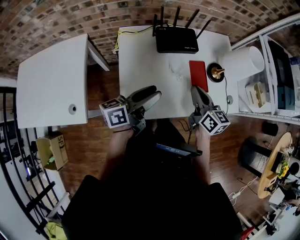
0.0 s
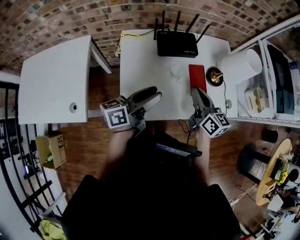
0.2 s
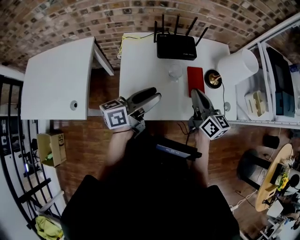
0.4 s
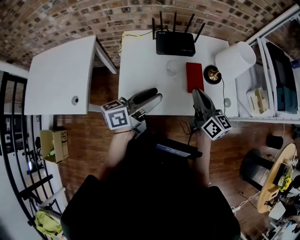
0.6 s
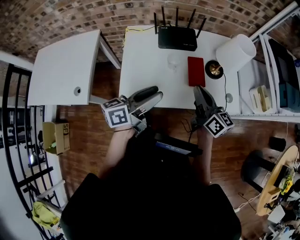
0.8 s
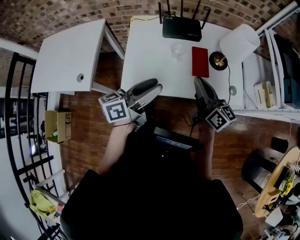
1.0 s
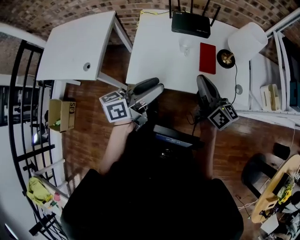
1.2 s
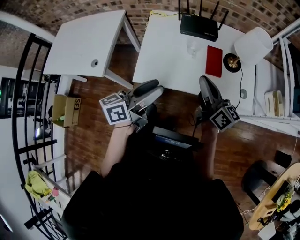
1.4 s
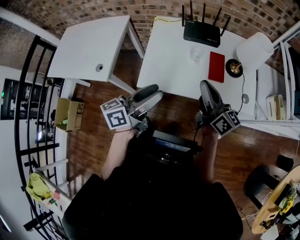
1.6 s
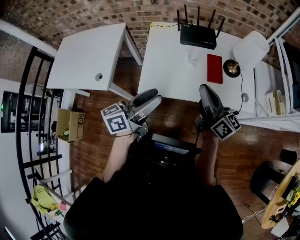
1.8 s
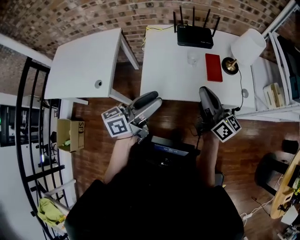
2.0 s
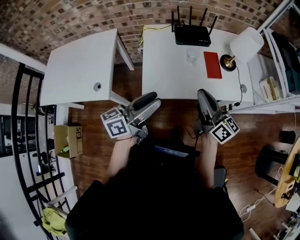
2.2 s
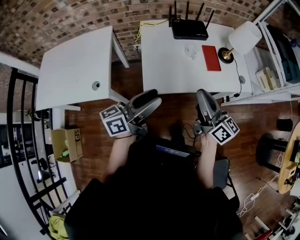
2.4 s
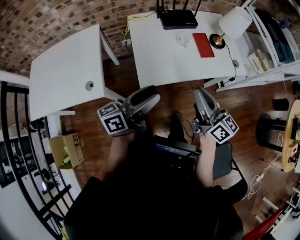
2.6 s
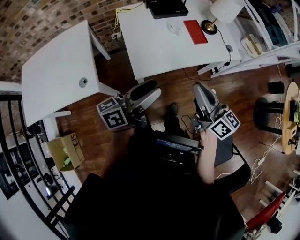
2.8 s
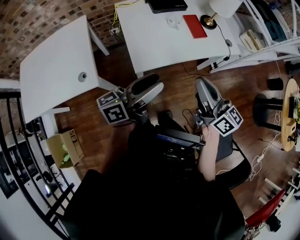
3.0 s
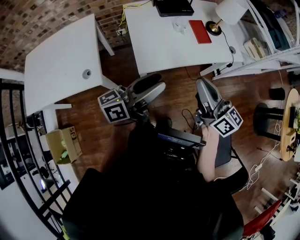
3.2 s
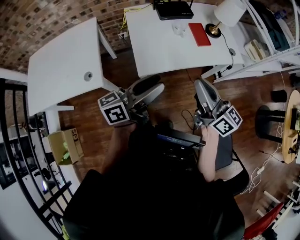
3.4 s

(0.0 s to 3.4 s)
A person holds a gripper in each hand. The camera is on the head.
0.0 s - 1.6 s: The left gripper heads backward, covering about 20 cm. The right gripper is displaced backward and upward by some 20 cm, and rotates roughly 30 degrees.
1.6 s - 3.4 s: The right gripper goes roughly 25 cm backward and to the left. Meanwhile the left gripper goes roughly 20 cm to the left and backward, and turns by some 30 degrees.

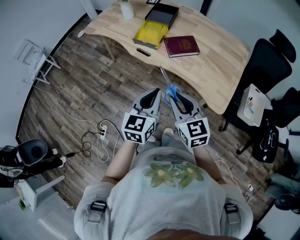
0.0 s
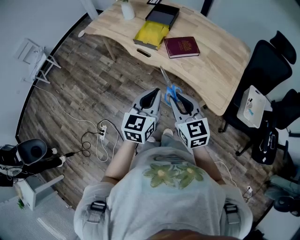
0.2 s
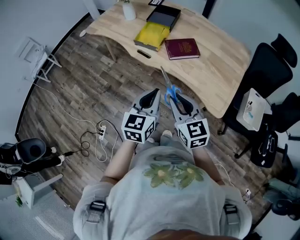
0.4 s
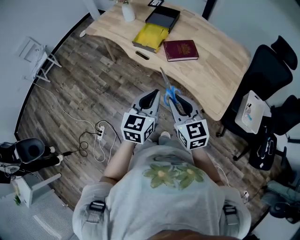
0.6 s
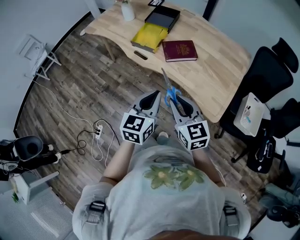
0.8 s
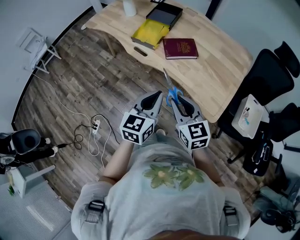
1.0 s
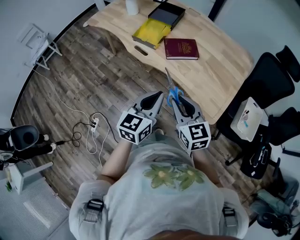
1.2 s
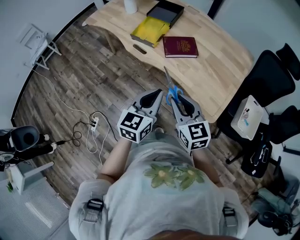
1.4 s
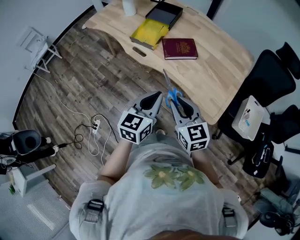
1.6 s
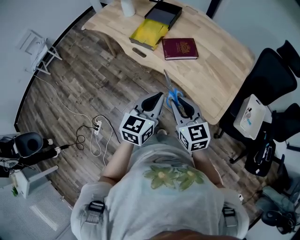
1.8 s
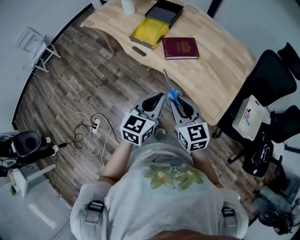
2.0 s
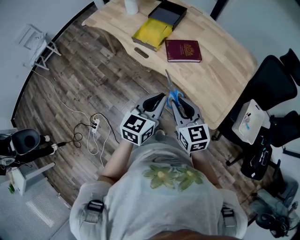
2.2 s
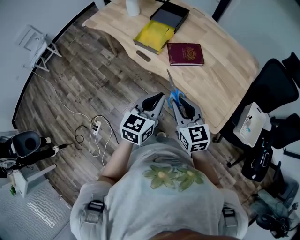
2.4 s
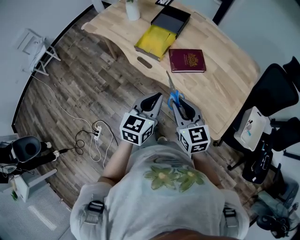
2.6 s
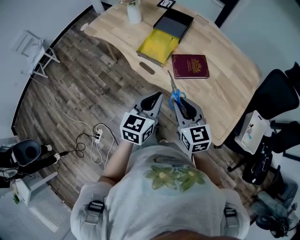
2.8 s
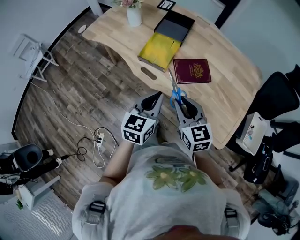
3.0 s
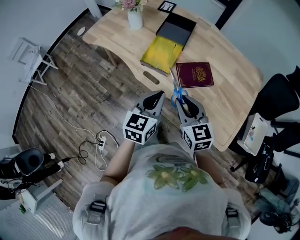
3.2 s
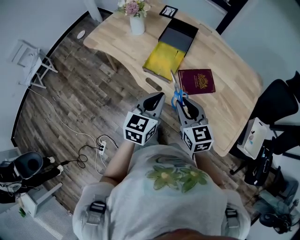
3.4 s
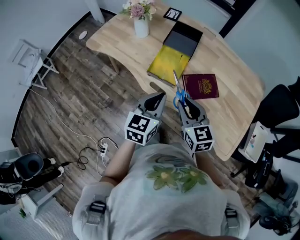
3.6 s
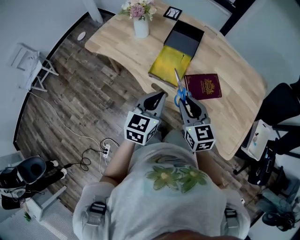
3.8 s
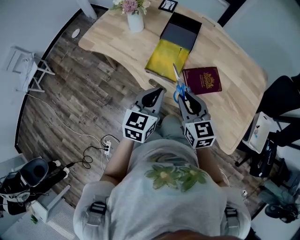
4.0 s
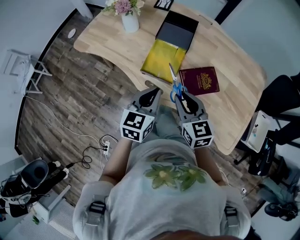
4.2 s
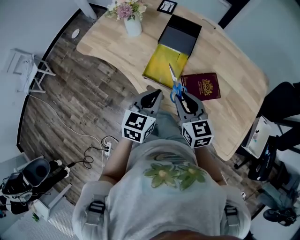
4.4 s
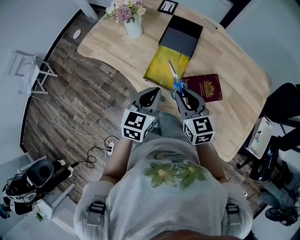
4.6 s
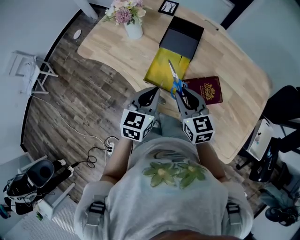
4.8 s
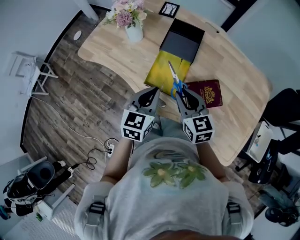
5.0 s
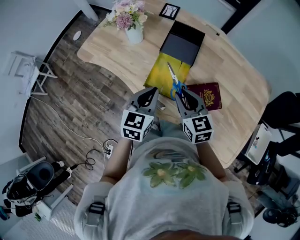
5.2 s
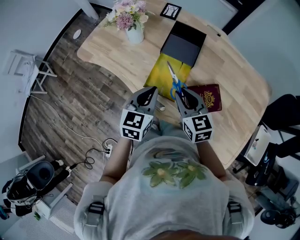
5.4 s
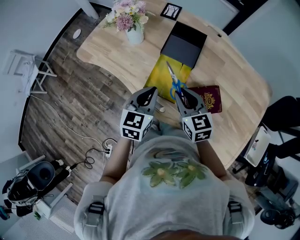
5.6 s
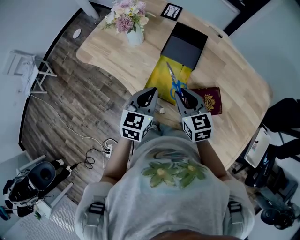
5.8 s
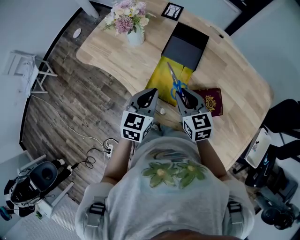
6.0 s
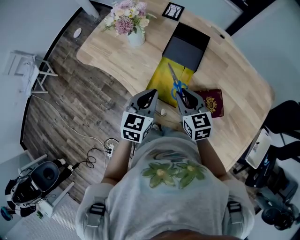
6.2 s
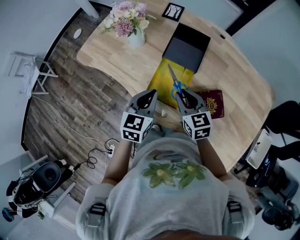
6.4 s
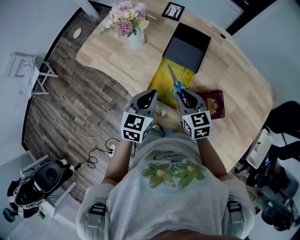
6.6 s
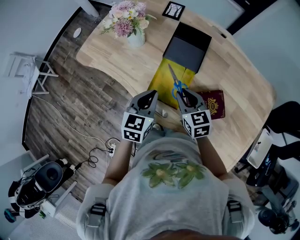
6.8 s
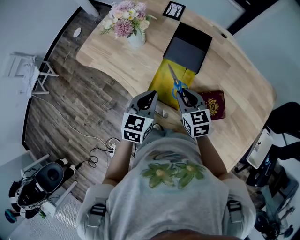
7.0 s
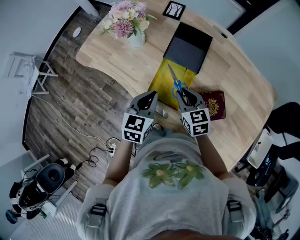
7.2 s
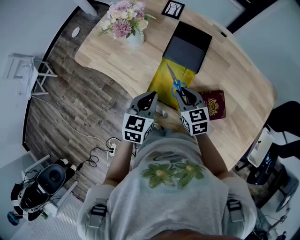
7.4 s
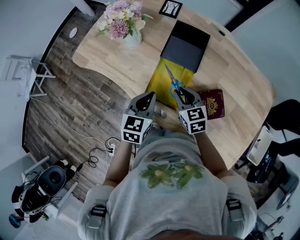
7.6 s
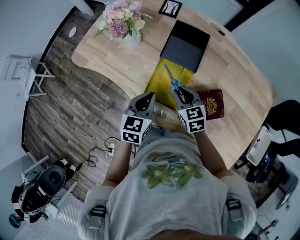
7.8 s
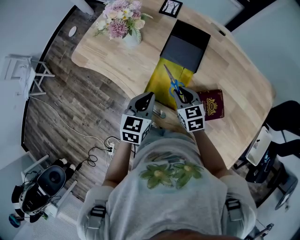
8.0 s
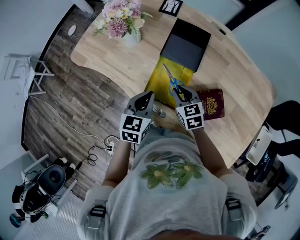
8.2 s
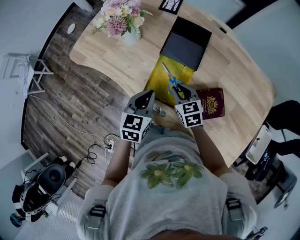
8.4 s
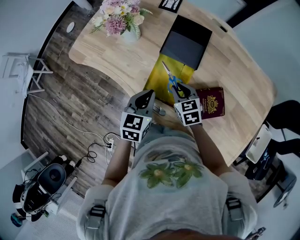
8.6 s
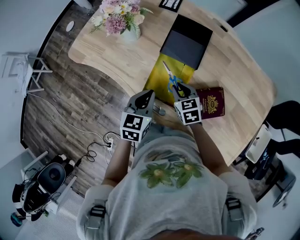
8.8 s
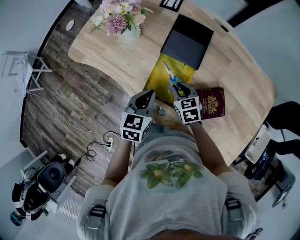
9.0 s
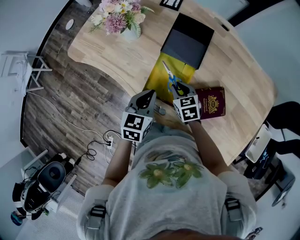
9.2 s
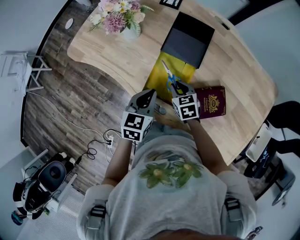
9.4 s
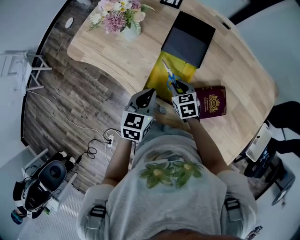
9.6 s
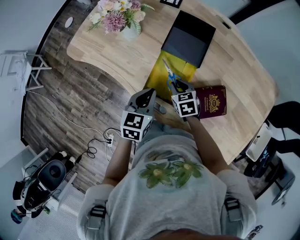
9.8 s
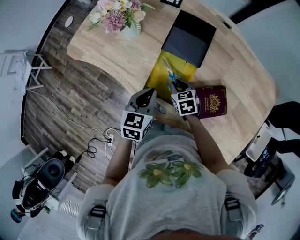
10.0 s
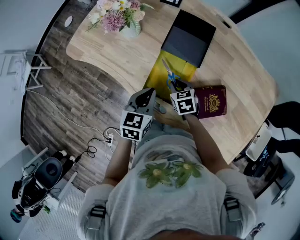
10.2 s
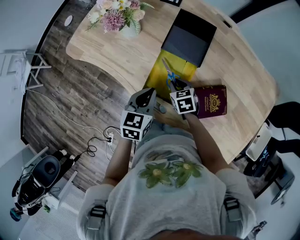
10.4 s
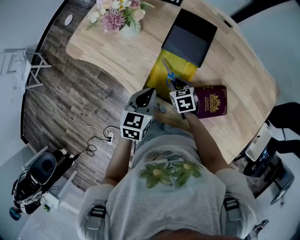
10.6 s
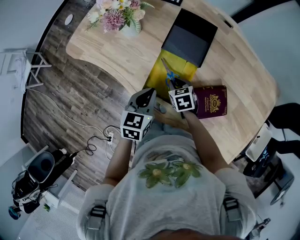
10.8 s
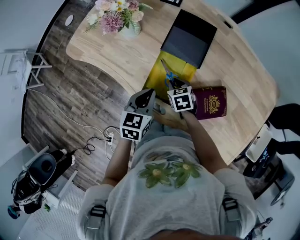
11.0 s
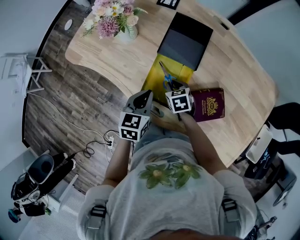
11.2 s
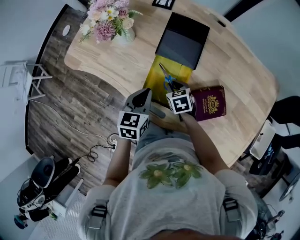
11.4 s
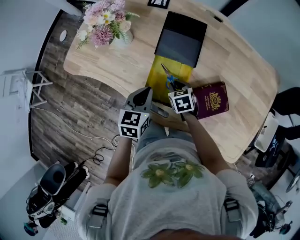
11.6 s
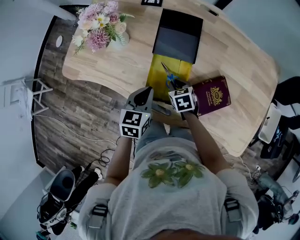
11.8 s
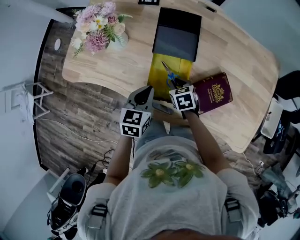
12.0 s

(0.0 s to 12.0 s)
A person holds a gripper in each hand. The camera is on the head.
0.0 s - 1.6 s: Both grippers travel together to the right, some 5 cm.
1.6 s - 3.0 s: The grippers both shift forward and to the left by some 20 cm.
3.0 s - 4.4 s: The right gripper moves forward, some 15 cm. The left gripper is displaced forward and to the left by some 15 cm.
4.4 s - 6.0 s: The two grippers go about 10 cm forward.
6.0 s - 7.6 s: The right gripper shifts roughly 5 cm downward.
7.6 s - 9.0 s: The right gripper travels downward by roughly 5 cm.
9.0 s - 10.4 s: The grippers move only a little.
10.4 s - 12.0 s: There are only small adjustments of the grippers.

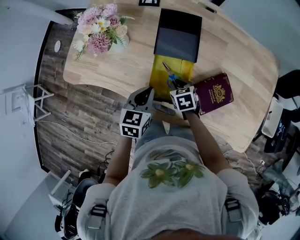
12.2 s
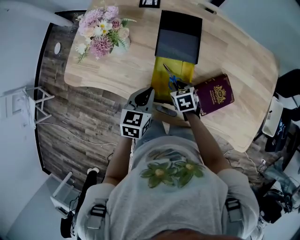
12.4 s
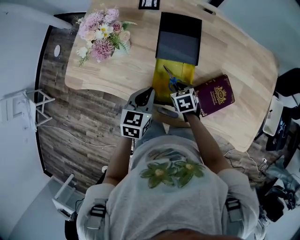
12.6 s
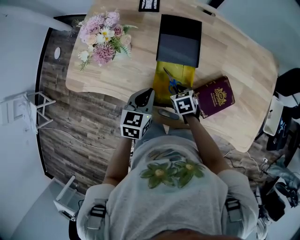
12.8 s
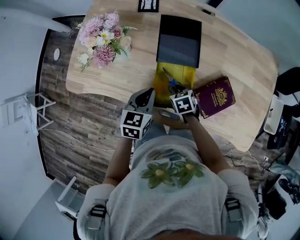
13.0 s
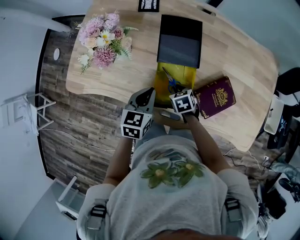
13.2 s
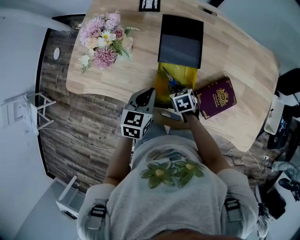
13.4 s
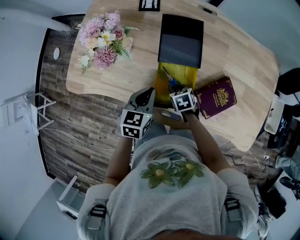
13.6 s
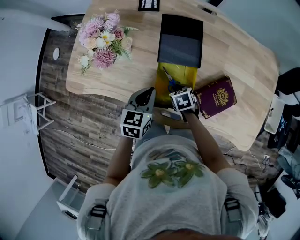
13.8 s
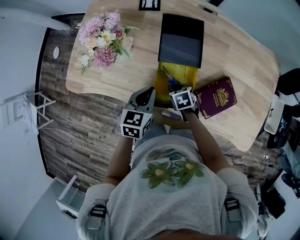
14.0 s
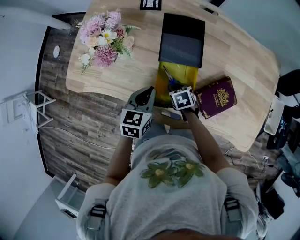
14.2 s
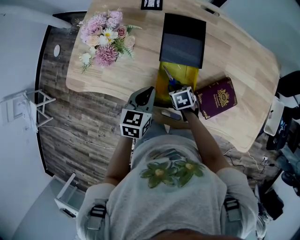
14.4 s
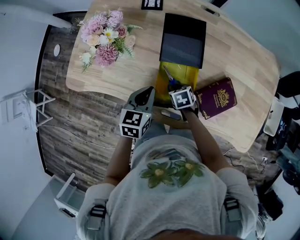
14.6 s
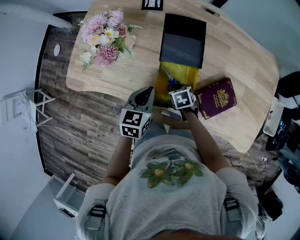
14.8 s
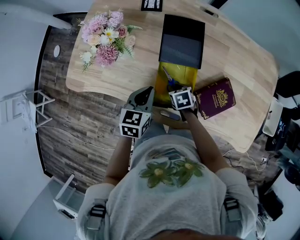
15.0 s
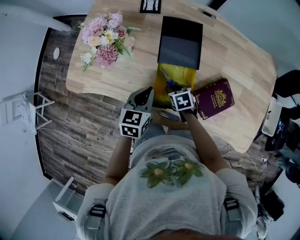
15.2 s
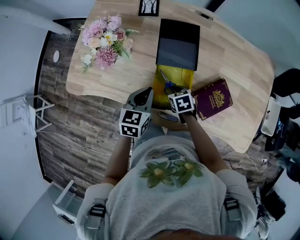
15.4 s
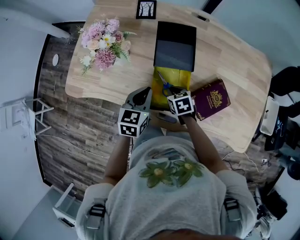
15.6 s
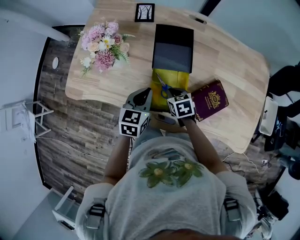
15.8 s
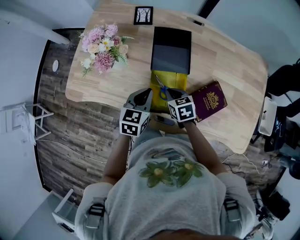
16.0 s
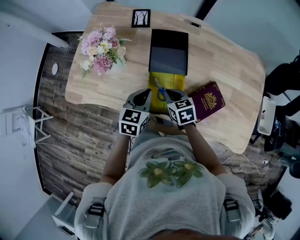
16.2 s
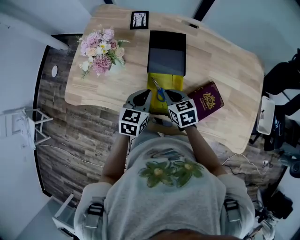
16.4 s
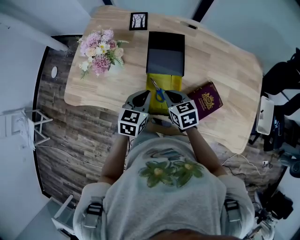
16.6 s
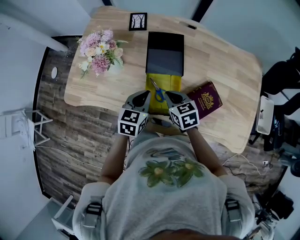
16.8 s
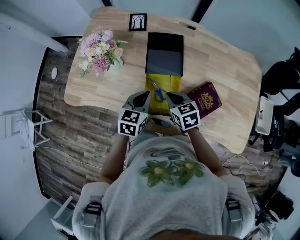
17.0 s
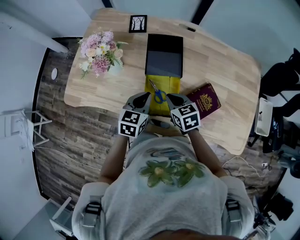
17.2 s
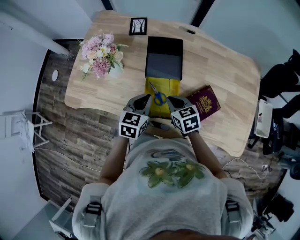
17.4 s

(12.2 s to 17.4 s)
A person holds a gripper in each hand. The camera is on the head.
12.2 s - 14.0 s: The grippers stay close to where they were, moving slightly.
14.0 s - 15.6 s: The right gripper changes place by some 5 cm.
15.6 s - 17.4 s: The right gripper is displaced upward by some 10 cm.

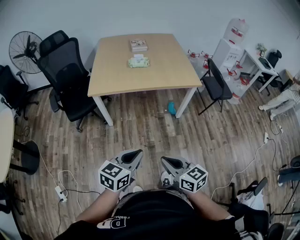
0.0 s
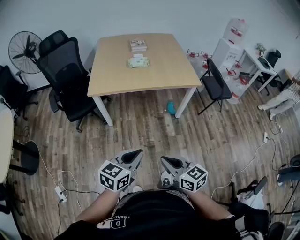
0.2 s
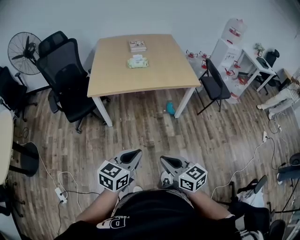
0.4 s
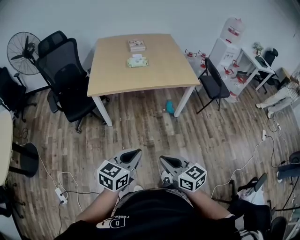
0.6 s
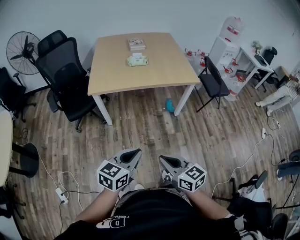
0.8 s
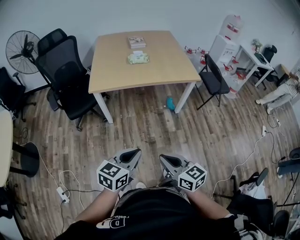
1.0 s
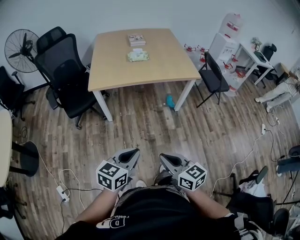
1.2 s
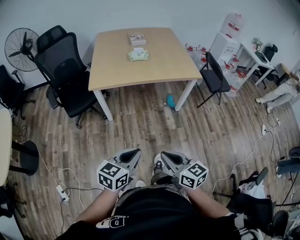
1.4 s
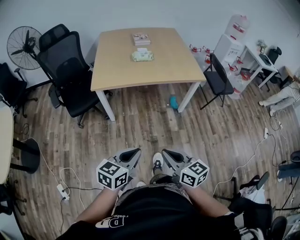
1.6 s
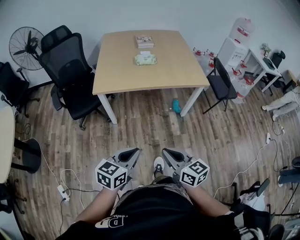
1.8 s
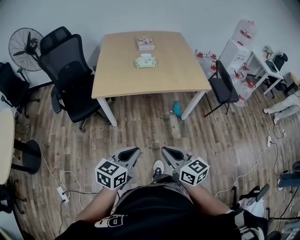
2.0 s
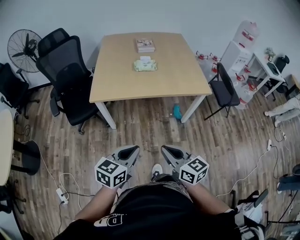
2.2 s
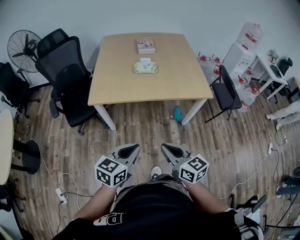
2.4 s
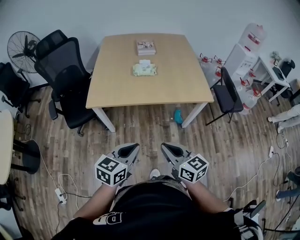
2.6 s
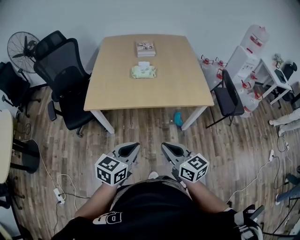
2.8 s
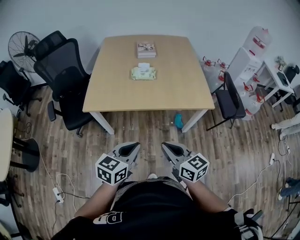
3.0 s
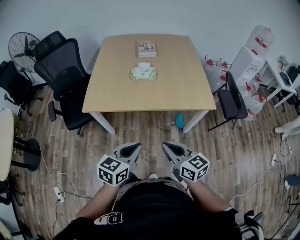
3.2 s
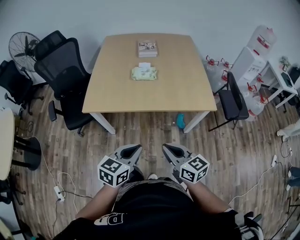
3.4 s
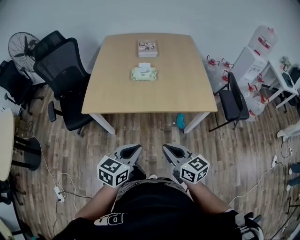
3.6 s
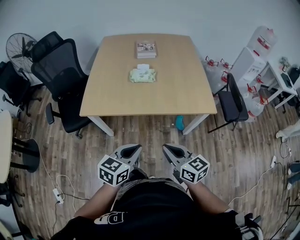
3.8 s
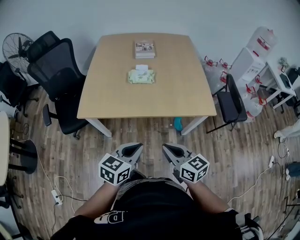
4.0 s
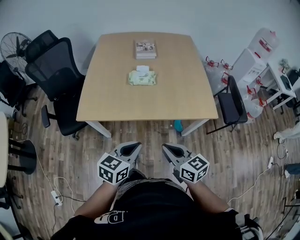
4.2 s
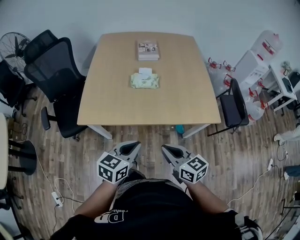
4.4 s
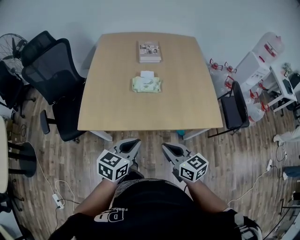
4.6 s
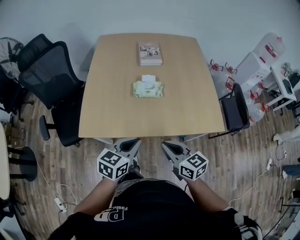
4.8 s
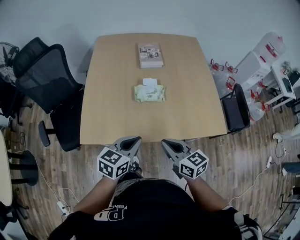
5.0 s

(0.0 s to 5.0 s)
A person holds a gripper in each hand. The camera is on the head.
0.0 s - 1.6 s: The left gripper moves to the left, roughly 5 cm.
1.6 s - 3.4 s: The right gripper heads forward, covering some 30 cm. Meanwhile the left gripper moves forward and to the right, roughly 30 cm.
3.4 s - 5.0 s: Both grippers move forward, approximately 25 cm.
